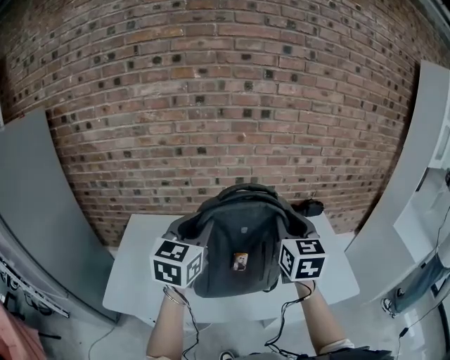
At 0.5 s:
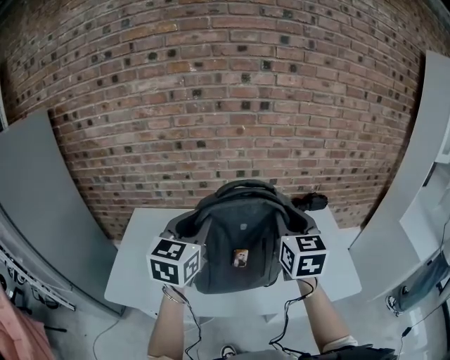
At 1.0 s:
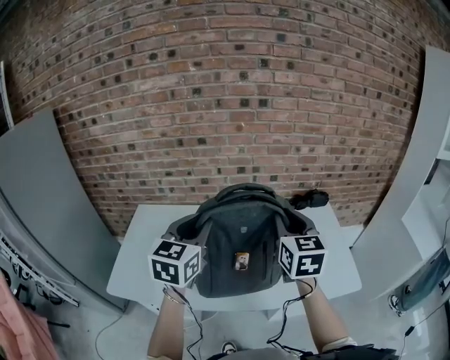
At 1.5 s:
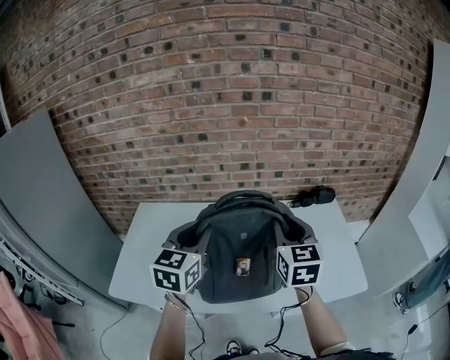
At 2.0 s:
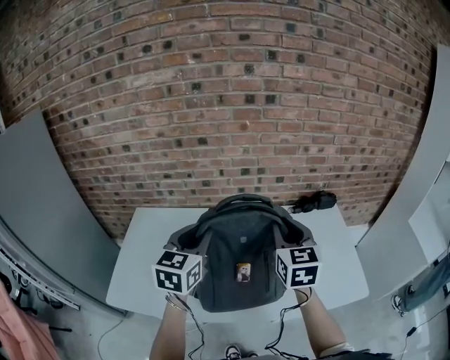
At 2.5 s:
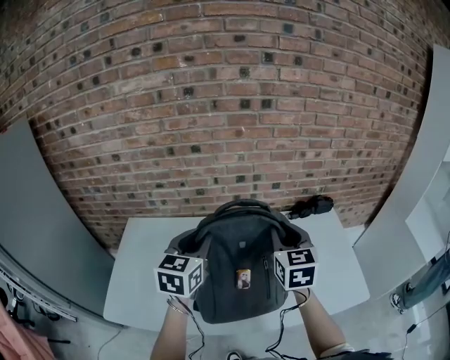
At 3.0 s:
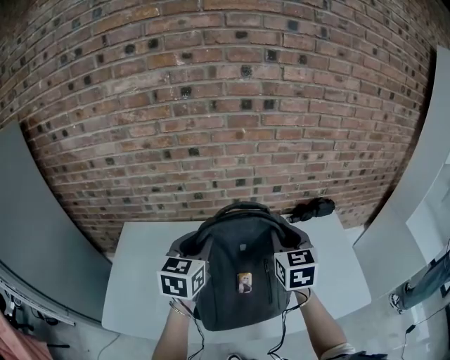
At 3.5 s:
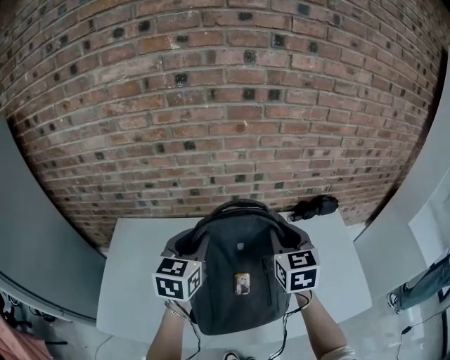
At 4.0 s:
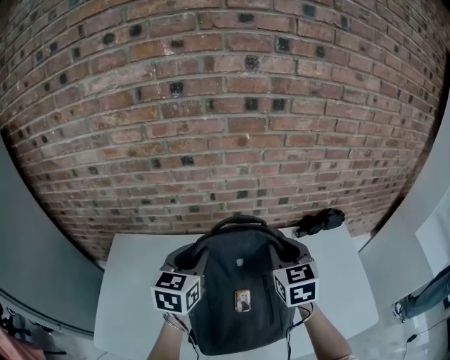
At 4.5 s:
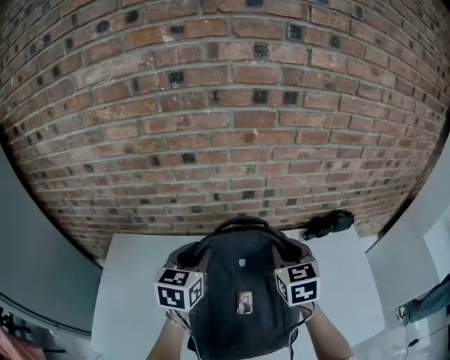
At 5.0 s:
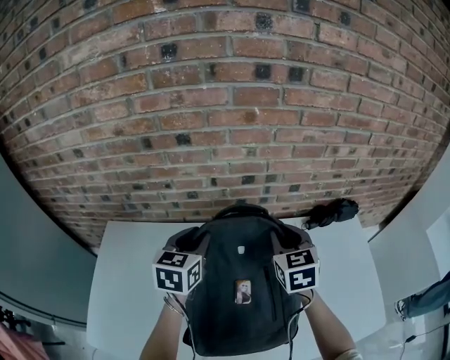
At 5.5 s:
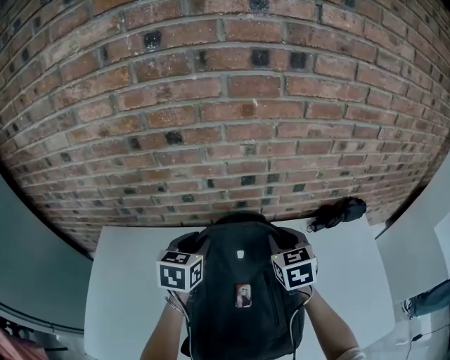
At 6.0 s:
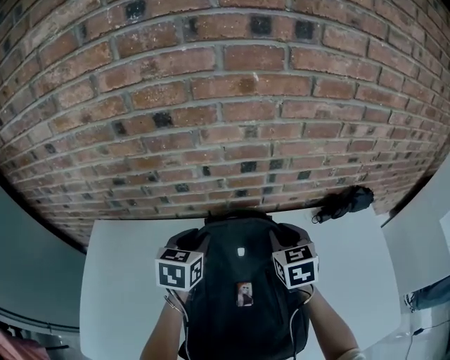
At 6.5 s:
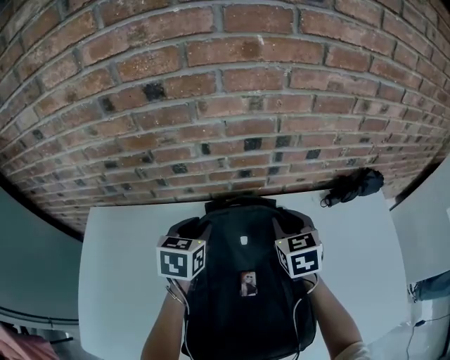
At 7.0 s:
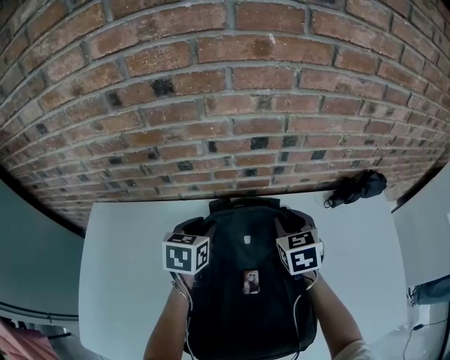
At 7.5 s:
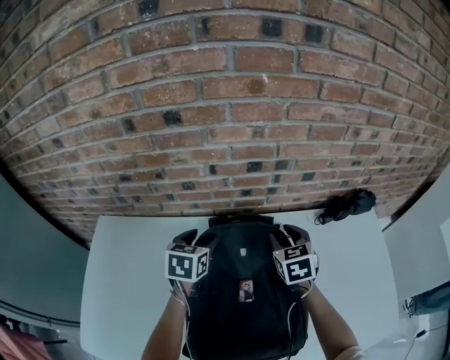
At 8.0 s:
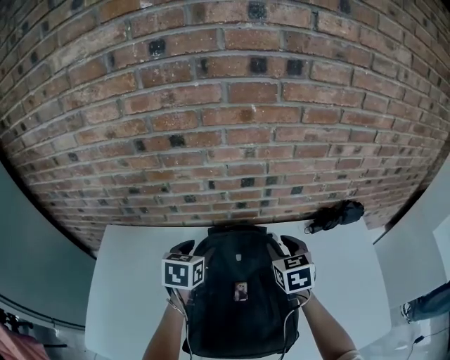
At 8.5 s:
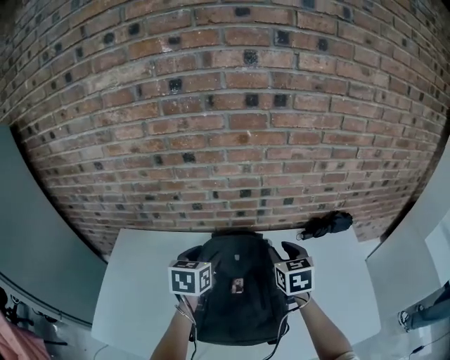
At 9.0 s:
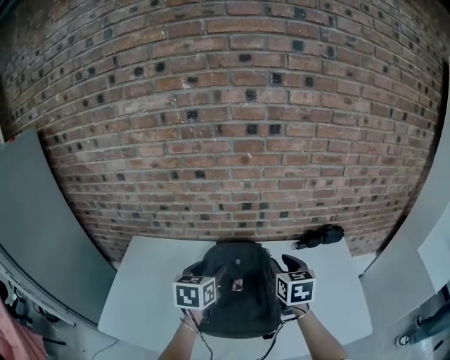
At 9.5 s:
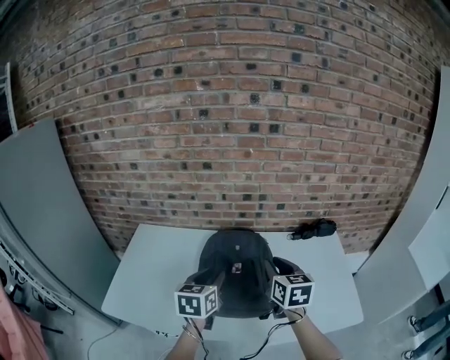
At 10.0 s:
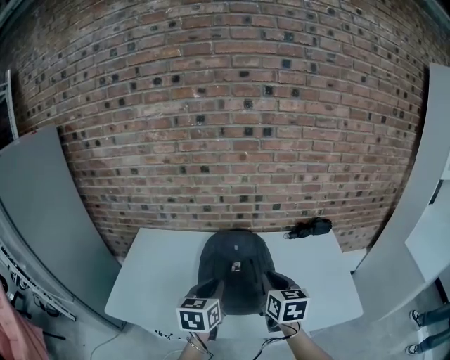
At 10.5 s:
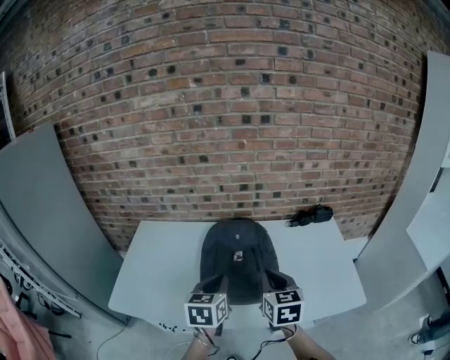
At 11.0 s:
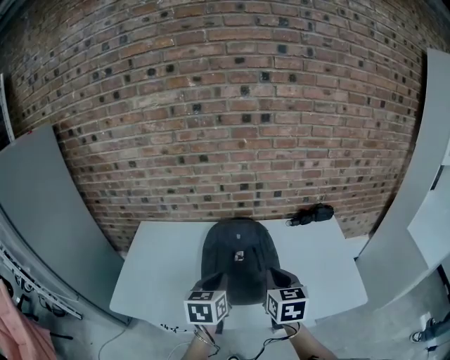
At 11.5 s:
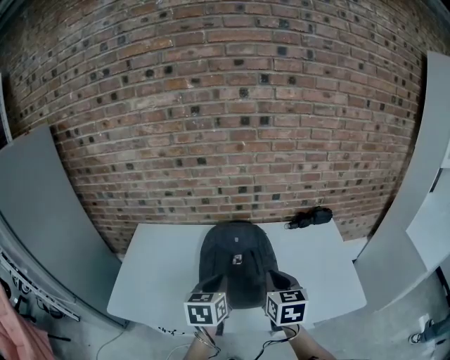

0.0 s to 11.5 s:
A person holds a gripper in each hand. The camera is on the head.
0.0 to 2.0 s: Both grippers move downward, roughly 5 cm.
2.0 to 4.0 s: Both grippers travel together forward and downward, some 20 cm.
4.0 to 6.0 s: The two grippers go about 20 cm downward and forward.
6.0 to 7.5 s: The left gripper opens up.
7.5 to 9.5 s: Both grippers travel together backward and upward, roughly 35 cm. The right gripper turns by approximately 20 degrees. The left gripper closes its fingers.
9.5 to 11.5 s: The left gripper ends up some 5 cm from where it was, and closes; the right gripper moves backward, some 10 cm, and closes up.

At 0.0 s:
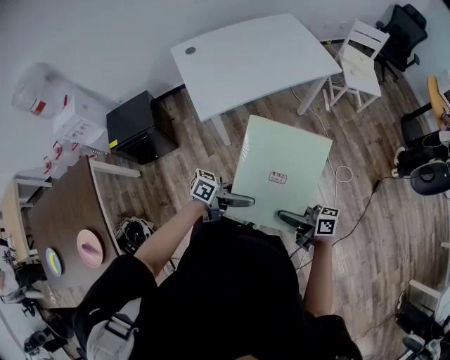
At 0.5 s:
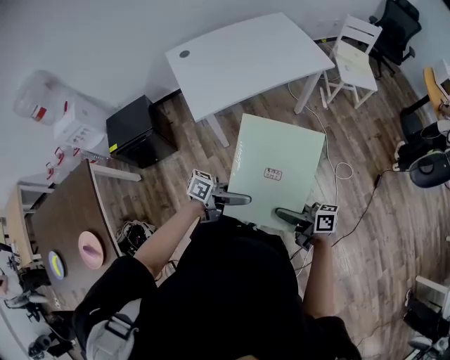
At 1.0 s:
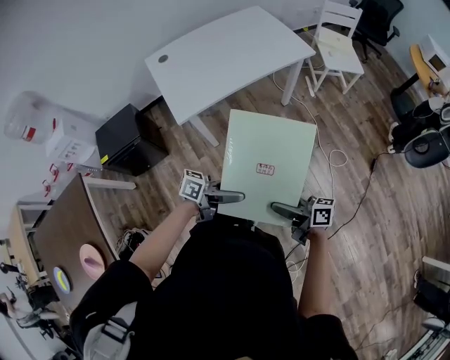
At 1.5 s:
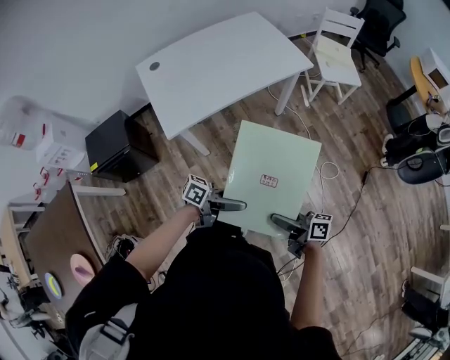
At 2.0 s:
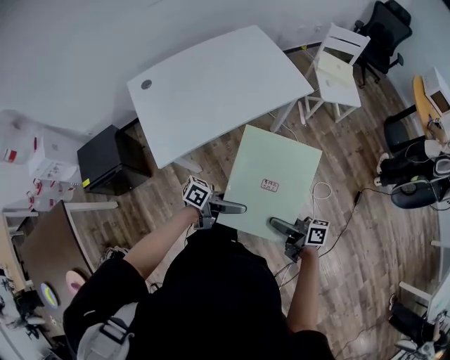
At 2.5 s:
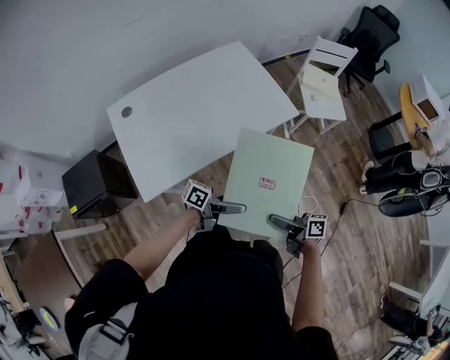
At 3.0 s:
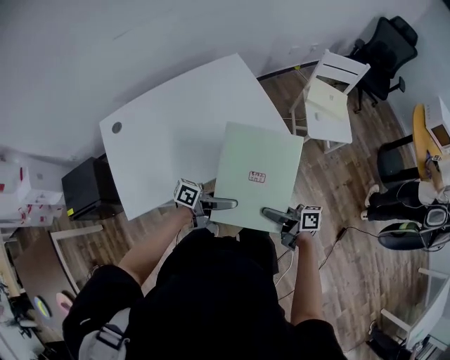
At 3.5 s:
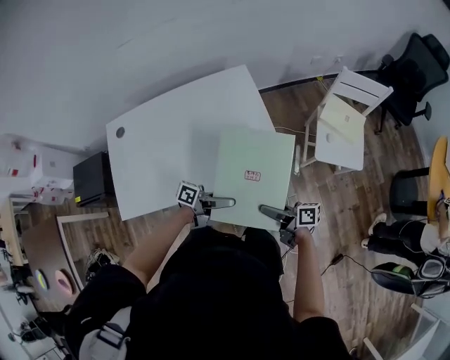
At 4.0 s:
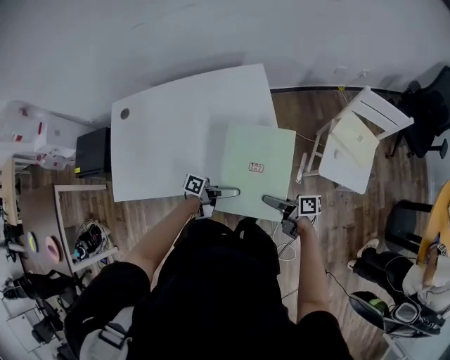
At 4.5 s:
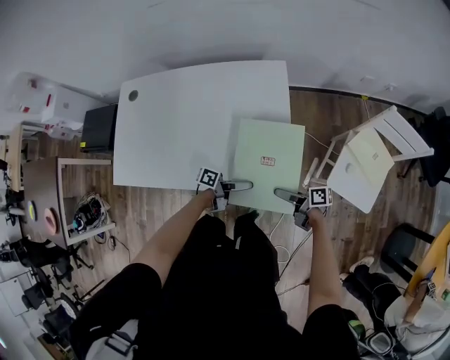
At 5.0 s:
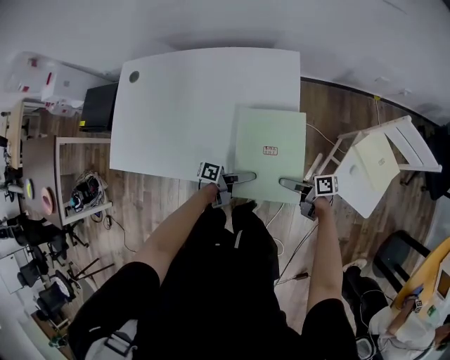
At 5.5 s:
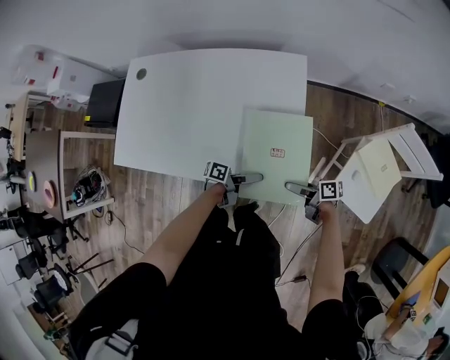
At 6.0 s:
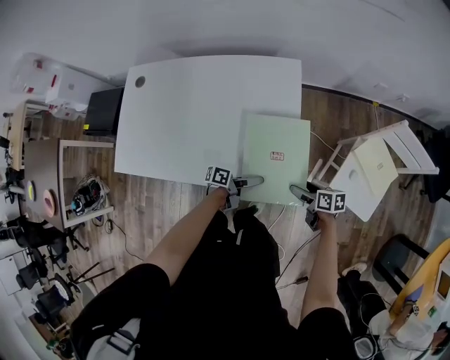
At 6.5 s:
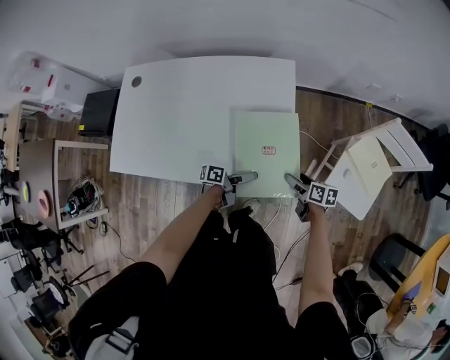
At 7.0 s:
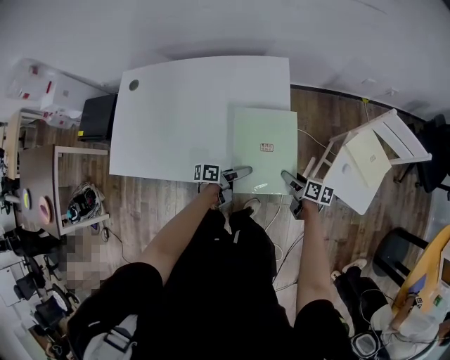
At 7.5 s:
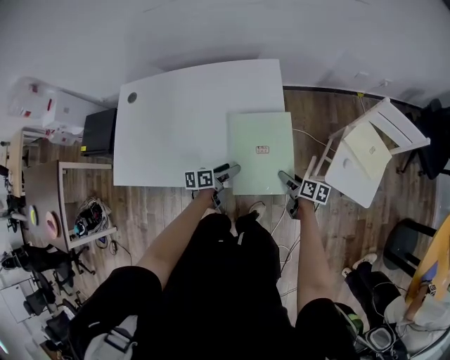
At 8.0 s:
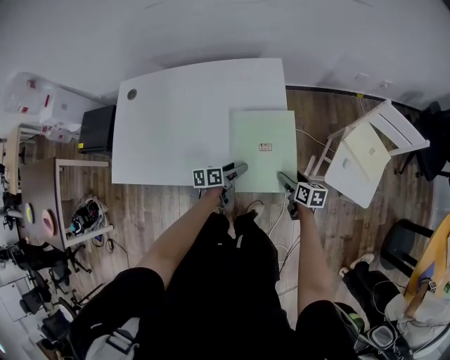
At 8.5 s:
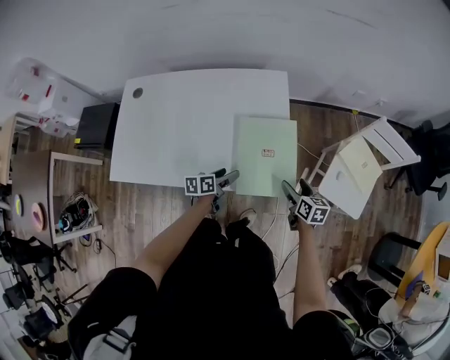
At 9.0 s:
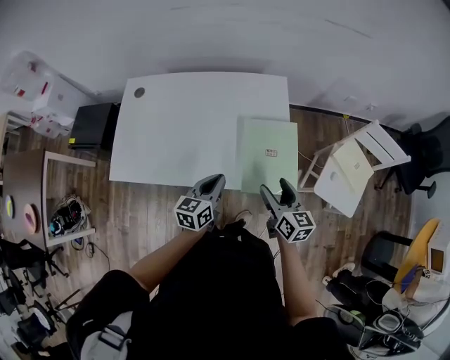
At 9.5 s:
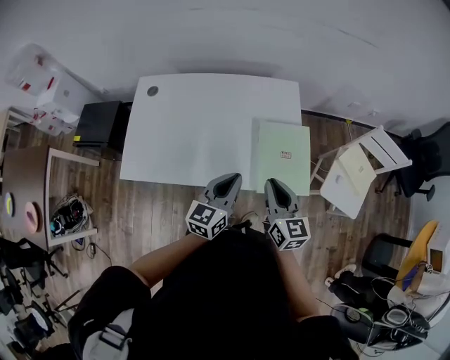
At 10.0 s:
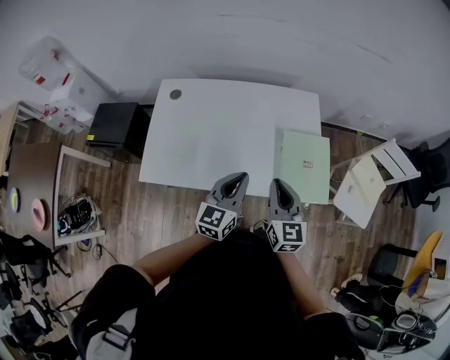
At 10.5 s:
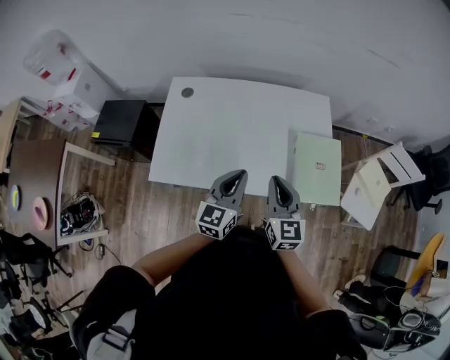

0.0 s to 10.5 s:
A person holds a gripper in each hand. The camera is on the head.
0.0 to 2.0 s: The right gripper shifts by approximately 20 cm. The left gripper moves roughly 20 cm.
2.0 to 4.0 s: The pair of grippers is taken roughly 50 cm. The left gripper rotates approximately 40 degrees; the right gripper turns by roughly 30 degrees.
4.0 to 6.5 s: The left gripper ends up roughly 15 cm from where it was, and rotates approximately 20 degrees. Meanwhile the right gripper moves some 20 cm, and rotates roughly 30 degrees.
6.5 to 8.5 s: The right gripper heads upward, covering some 5 cm, and rotates approximately 20 degrees; the left gripper travels to the left by some 10 cm, and turns by some 30 degrees.
8.5 to 10.5 s: The right gripper moves to the left and upward, approximately 40 cm, swivels roughly 40 degrees, and closes up. Meanwhile the left gripper goes about 30 cm upward and to the left, swivels approximately 50 degrees, and closes up.

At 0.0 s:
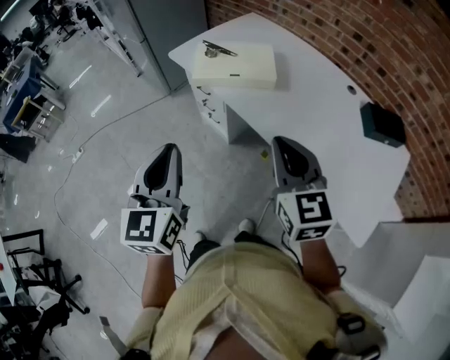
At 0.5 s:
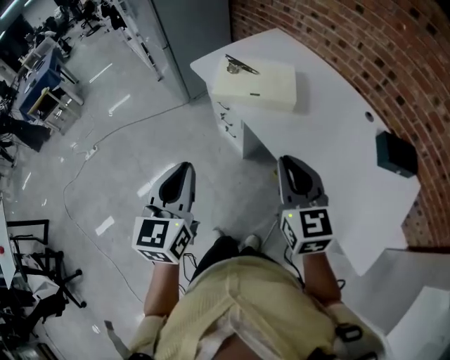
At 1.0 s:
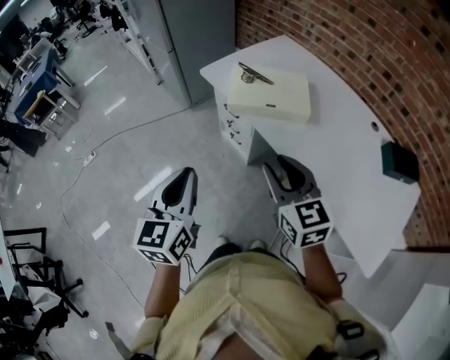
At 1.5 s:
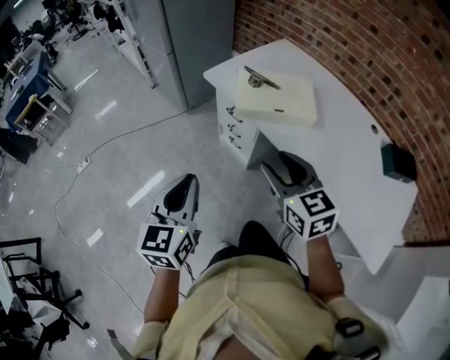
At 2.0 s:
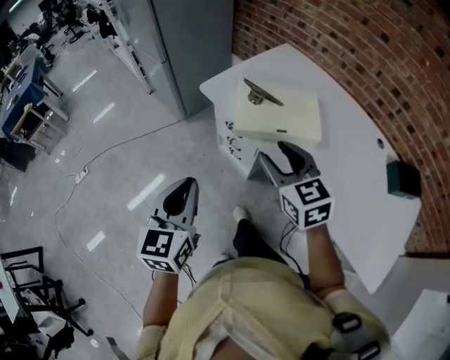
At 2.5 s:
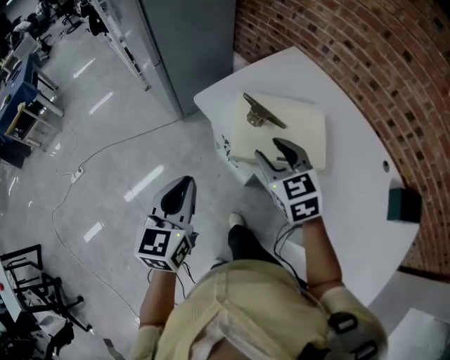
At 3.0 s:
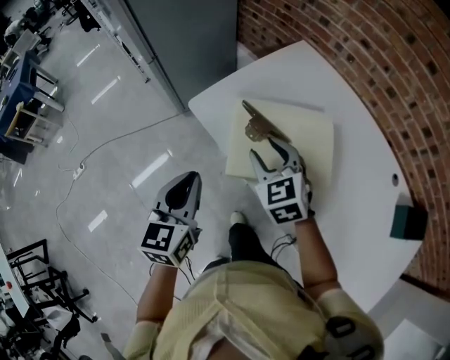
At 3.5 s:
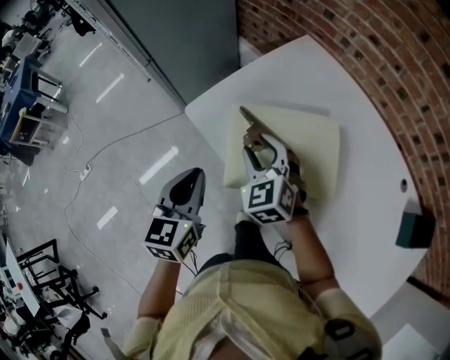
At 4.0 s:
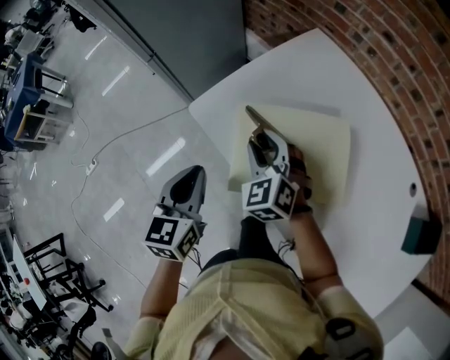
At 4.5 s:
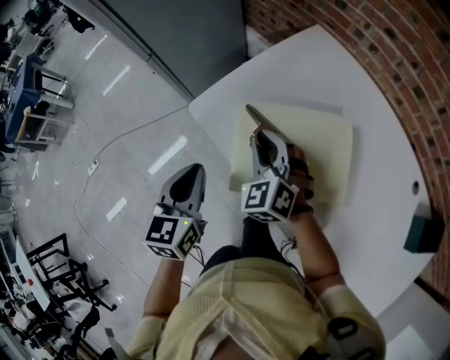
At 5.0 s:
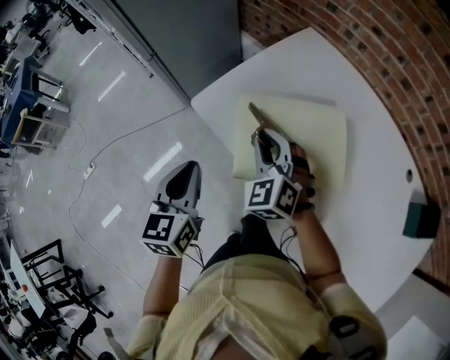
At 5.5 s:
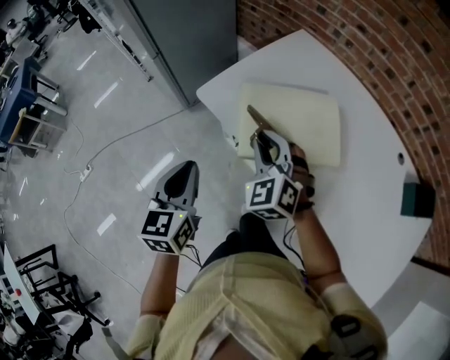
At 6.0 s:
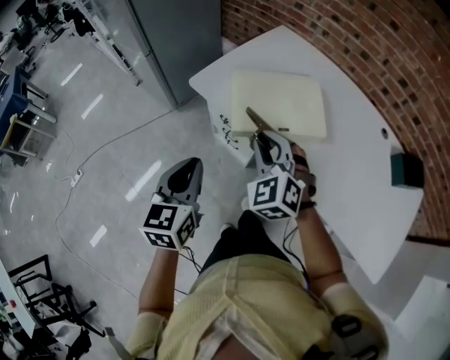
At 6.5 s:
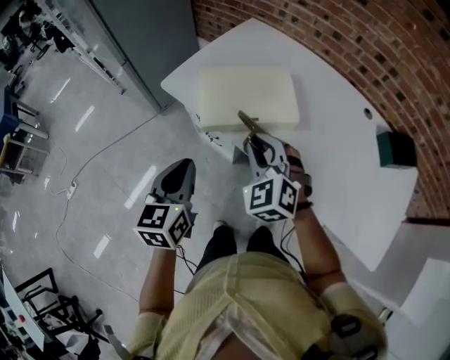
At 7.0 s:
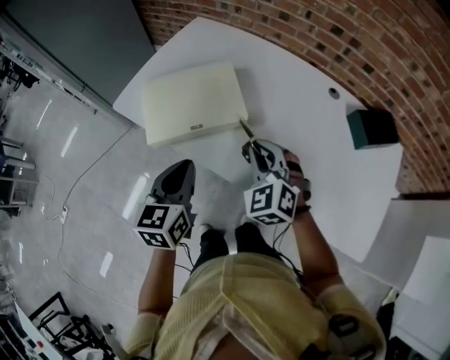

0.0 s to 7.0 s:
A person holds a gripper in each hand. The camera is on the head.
0.0 to 2.0 s: The left gripper moves forward, to the left and downward, roughly 20 cm. Meanwhile the right gripper travels forward and to the left by some 25 cm, and opens.
2.0 to 3.5 s: The right gripper moves forward and downward, some 25 cm, and swivels about 20 degrees. The left gripper shifts about 25 cm forward.
3.5 to 5.0 s: The right gripper closes.
5.0 to 7.0 s: Both grippers move to the right and backward, about 30 cm. The left gripper turns by approximately 20 degrees.
